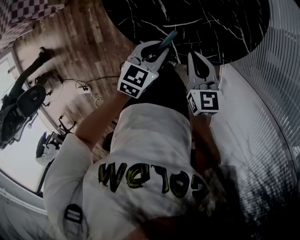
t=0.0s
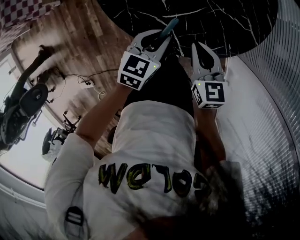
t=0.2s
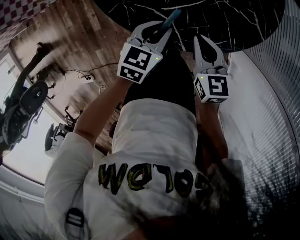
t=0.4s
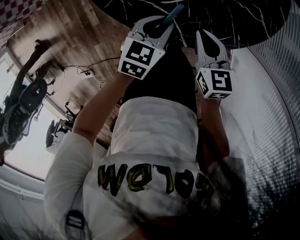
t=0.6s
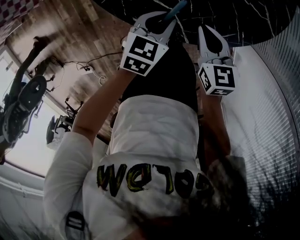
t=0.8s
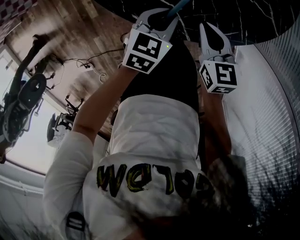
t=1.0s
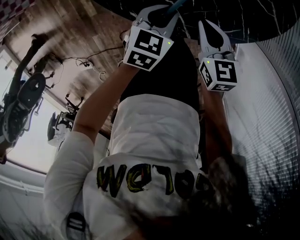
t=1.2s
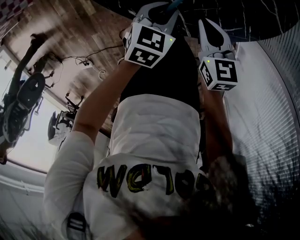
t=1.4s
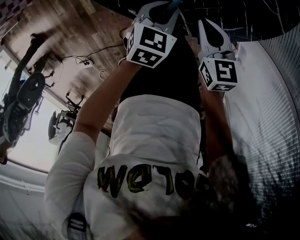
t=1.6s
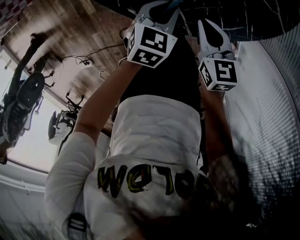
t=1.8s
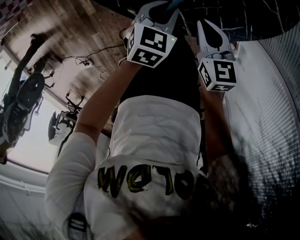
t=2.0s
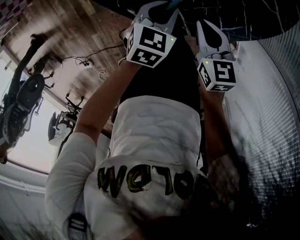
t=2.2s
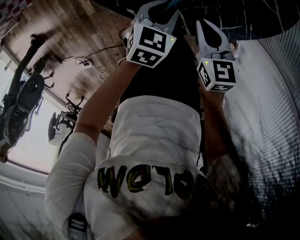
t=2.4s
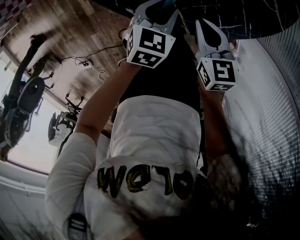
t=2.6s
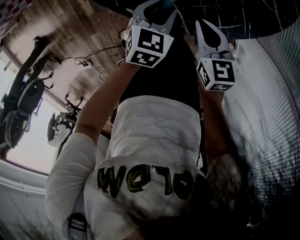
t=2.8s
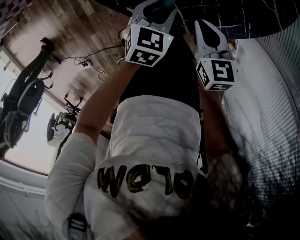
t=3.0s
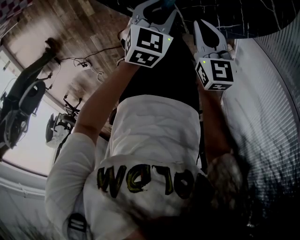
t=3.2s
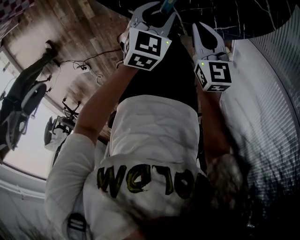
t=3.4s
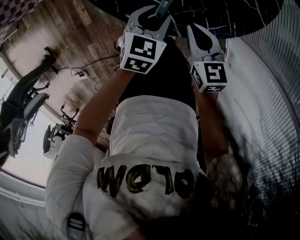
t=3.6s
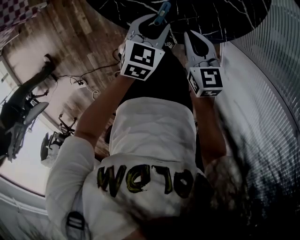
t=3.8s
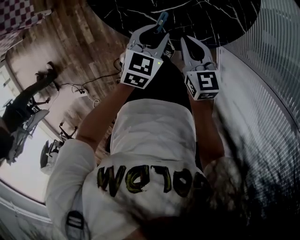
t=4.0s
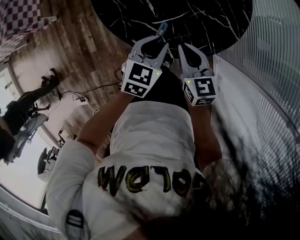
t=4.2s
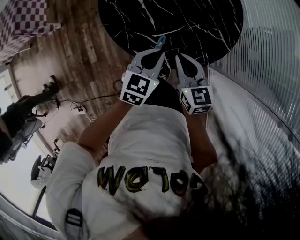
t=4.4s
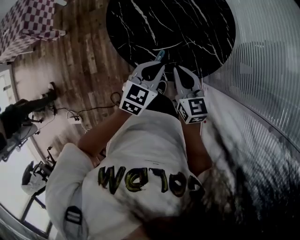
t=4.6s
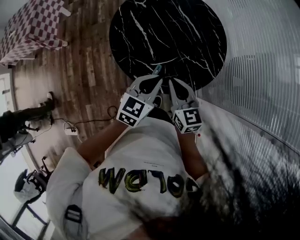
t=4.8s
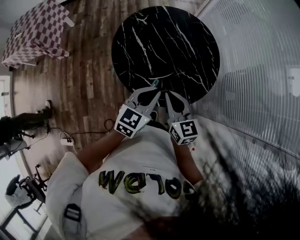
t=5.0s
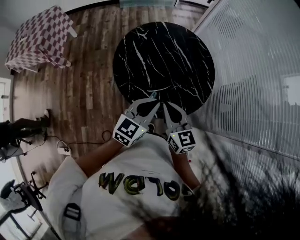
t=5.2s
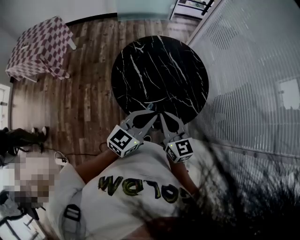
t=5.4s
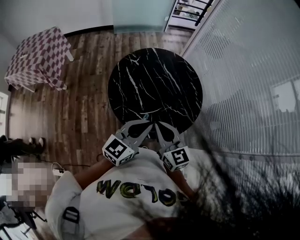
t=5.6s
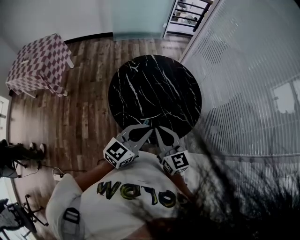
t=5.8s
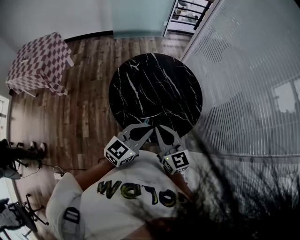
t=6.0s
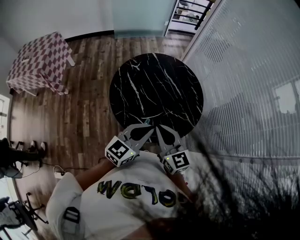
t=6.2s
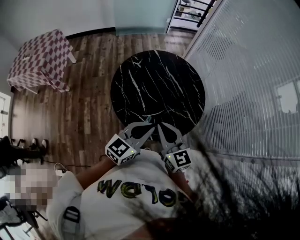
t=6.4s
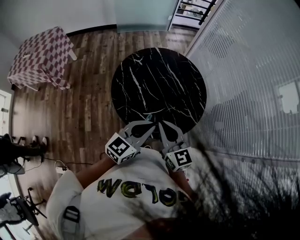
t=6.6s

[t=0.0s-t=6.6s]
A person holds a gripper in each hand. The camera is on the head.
t=0.0s to t=1.6s: Both grippers move downward, roughly 15 cm.
t=1.6s to t=3.2s: Neither gripper changes place.
t=3.2s to t=5.0s: Both grippers move upward, roughly 30 cm. The right gripper turns by about 30 degrees; the left gripper turns by roughly 30 degrees, and closes.
t=5.0s to t=6.6s: Both grippers move upward, roughly 10 cm.

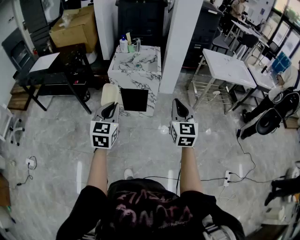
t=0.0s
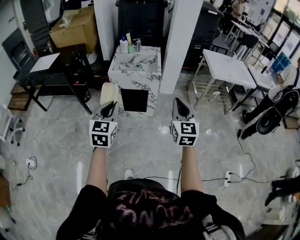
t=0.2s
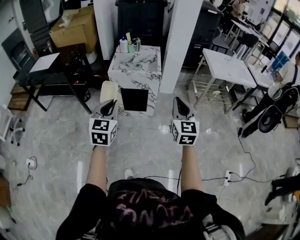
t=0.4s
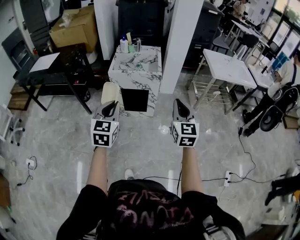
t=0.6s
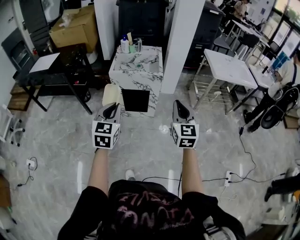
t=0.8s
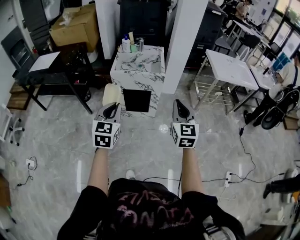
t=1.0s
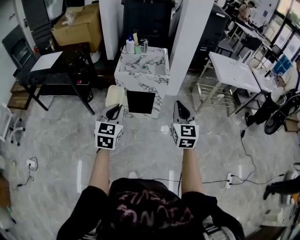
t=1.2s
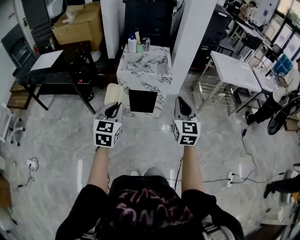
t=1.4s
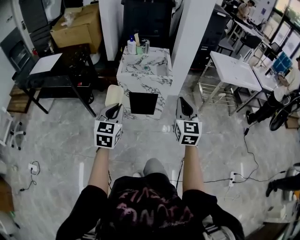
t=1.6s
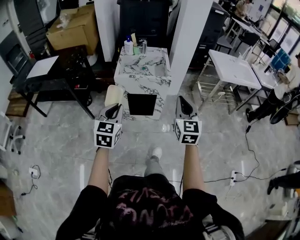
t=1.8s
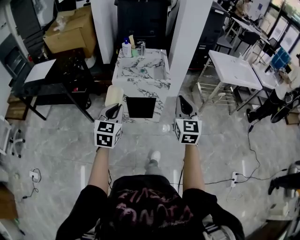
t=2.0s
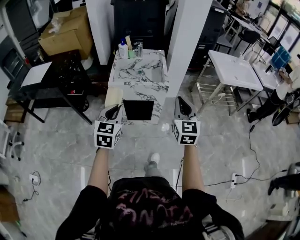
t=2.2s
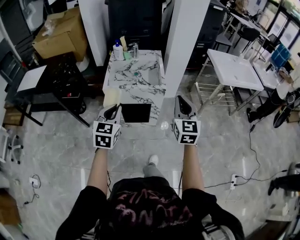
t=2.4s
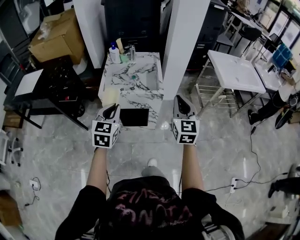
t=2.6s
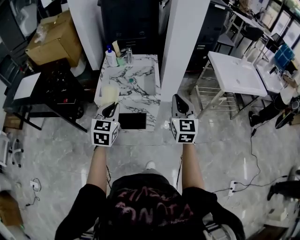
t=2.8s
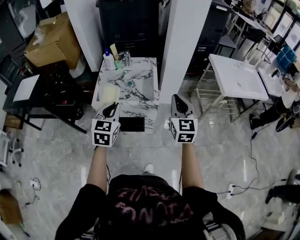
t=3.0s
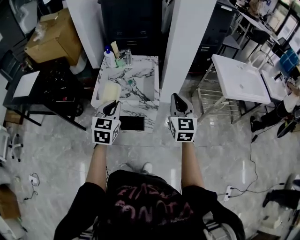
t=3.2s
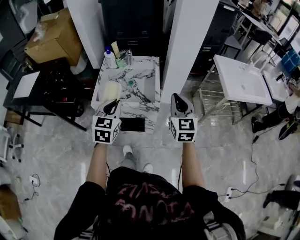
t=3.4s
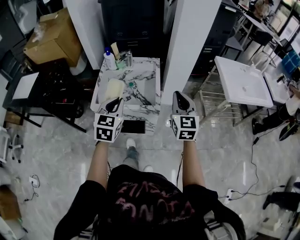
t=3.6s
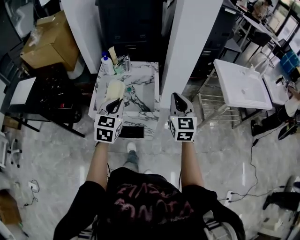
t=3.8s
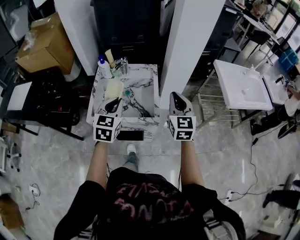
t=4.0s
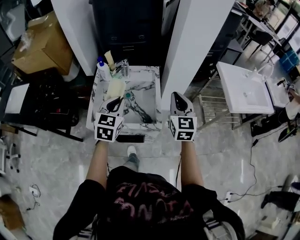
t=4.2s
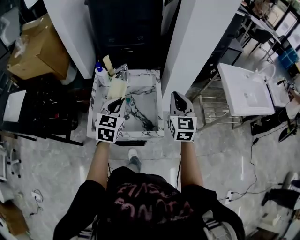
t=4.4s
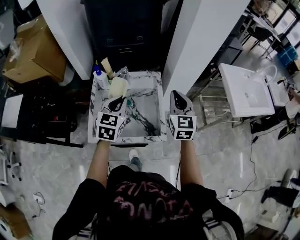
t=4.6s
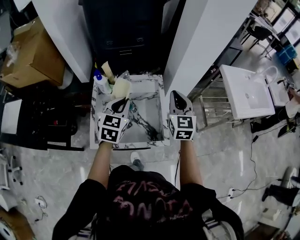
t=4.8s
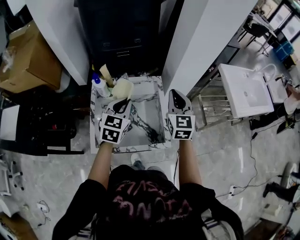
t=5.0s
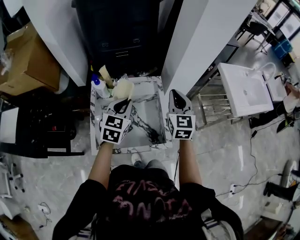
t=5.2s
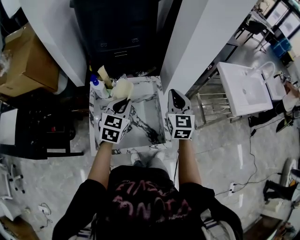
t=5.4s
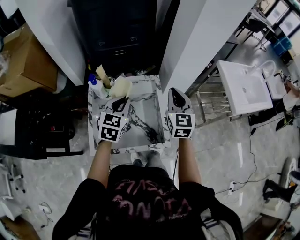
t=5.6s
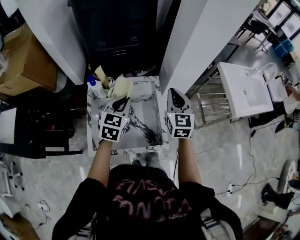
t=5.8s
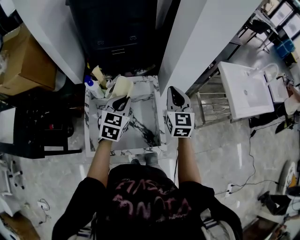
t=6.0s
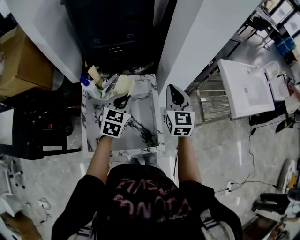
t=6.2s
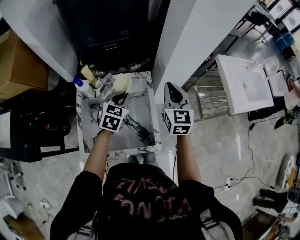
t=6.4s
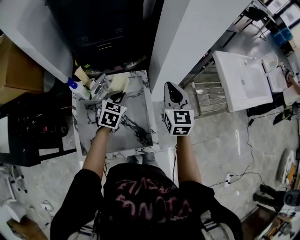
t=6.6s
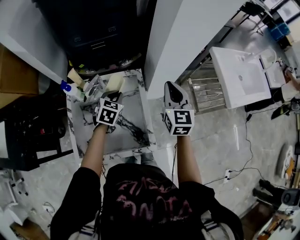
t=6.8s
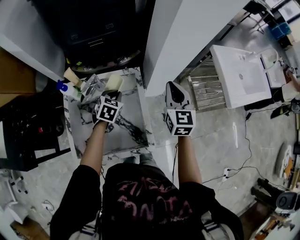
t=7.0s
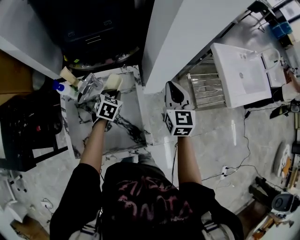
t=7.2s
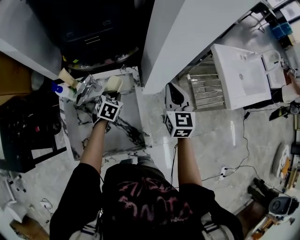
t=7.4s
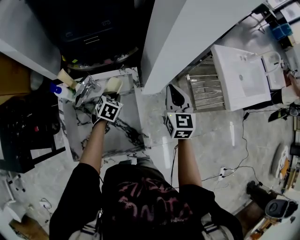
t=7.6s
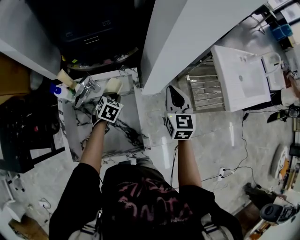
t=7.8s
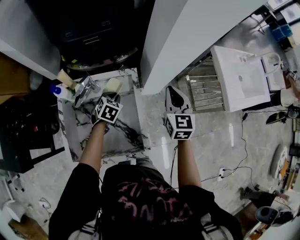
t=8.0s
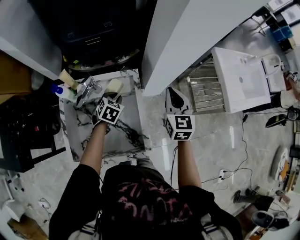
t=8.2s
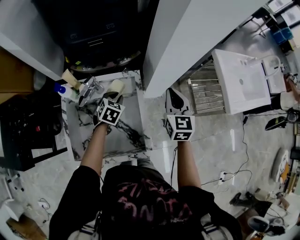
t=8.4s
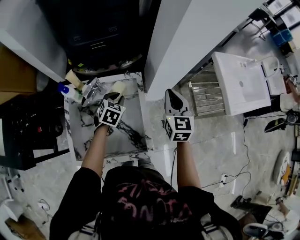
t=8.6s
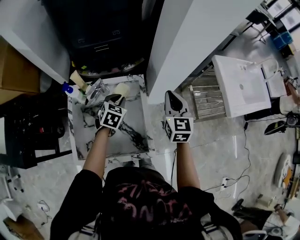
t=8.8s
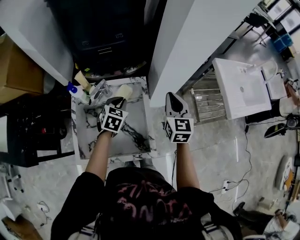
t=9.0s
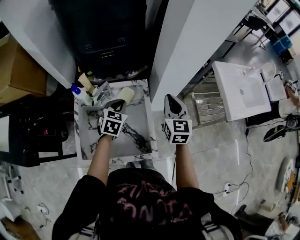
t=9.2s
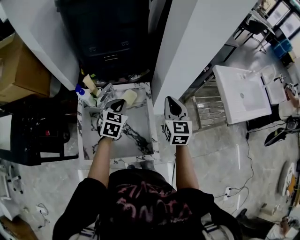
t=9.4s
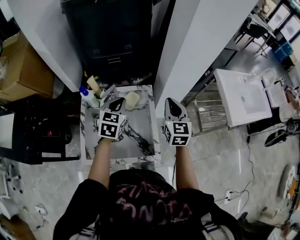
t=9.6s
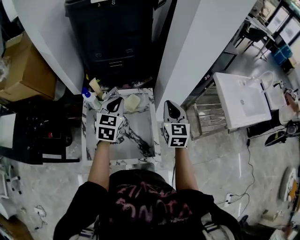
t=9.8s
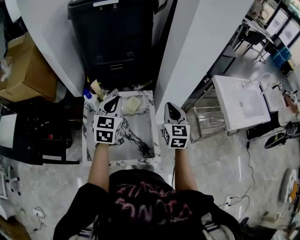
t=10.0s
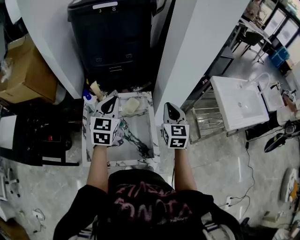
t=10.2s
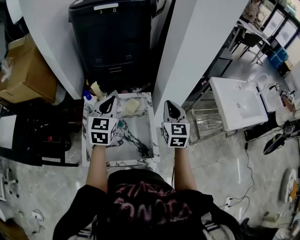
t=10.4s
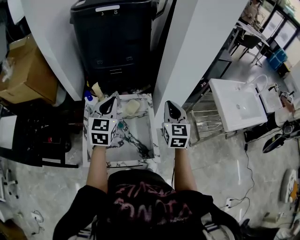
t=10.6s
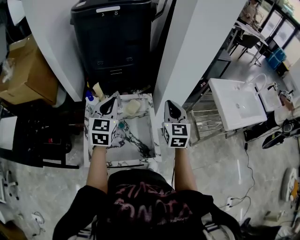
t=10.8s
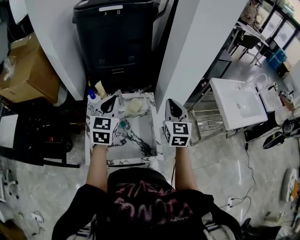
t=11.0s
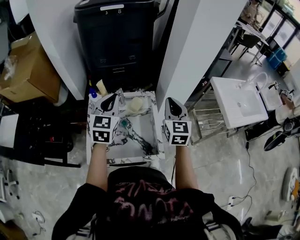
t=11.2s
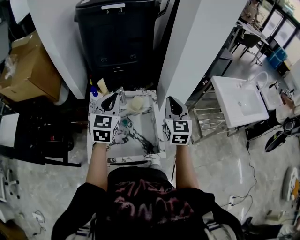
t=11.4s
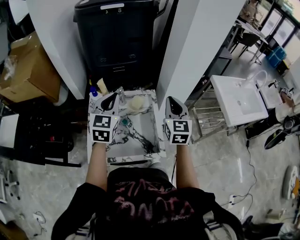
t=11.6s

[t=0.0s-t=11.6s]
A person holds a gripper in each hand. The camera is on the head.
t=0.0s to t=1.4s: The left gripper goes about 10 cm to the left. Meanwhile the right gripper is displaced to the left and forward by roughly 10 cm.
t=1.4s to t=2.8s: Both grippers move forward, approximately 30 cm.
t=2.8s to t=4.4s: Both grippers travel together forward, about 30 cm.
t=4.4s to t=5.8s: Both grippers move forward, about 10 cm.
t=5.8s to t=7.2s: The left gripper goes some 20 cm downward and forward, and turns by roughly 30 degrees; the right gripper is displaced to the right, forward and downward by some 15 cm.
t=7.2s to t=8.8s: The left gripper shifts about 5 cm upward.
t=8.8s to t=10.2s: The right gripper heads upward, covering some 5 cm. Meanwhile the left gripper travels upward by roughly 20 cm, and changes its angle by approximately 30 degrees.
t=10.2s to t=11.6s: The right gripper shifts by approximately 5 cm, while the left gripper ends up approximately 5 cm from where it was.

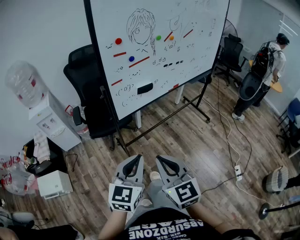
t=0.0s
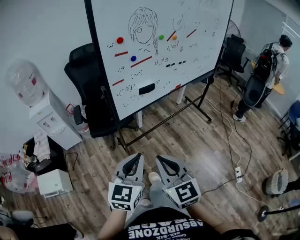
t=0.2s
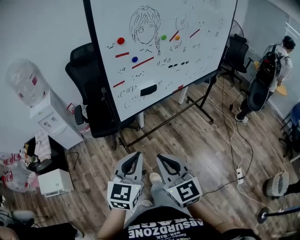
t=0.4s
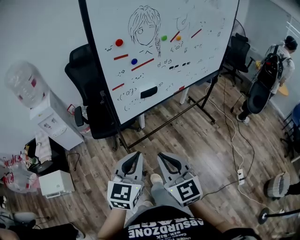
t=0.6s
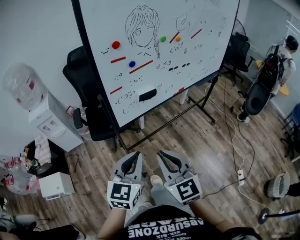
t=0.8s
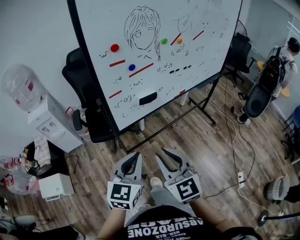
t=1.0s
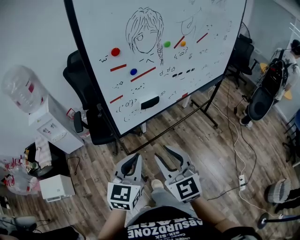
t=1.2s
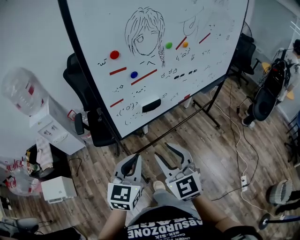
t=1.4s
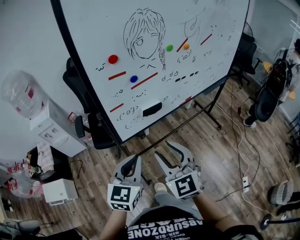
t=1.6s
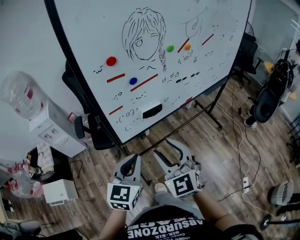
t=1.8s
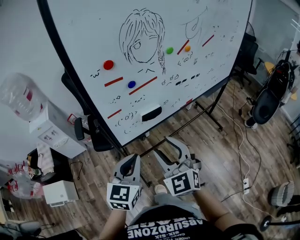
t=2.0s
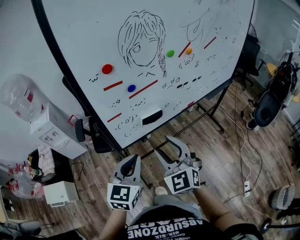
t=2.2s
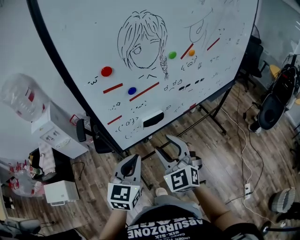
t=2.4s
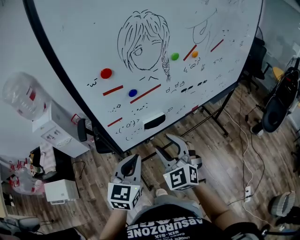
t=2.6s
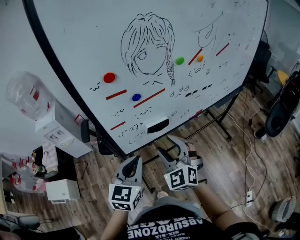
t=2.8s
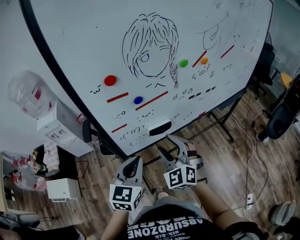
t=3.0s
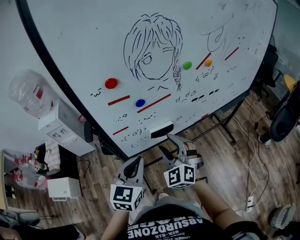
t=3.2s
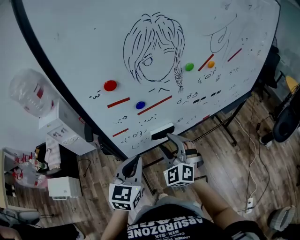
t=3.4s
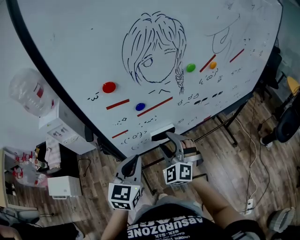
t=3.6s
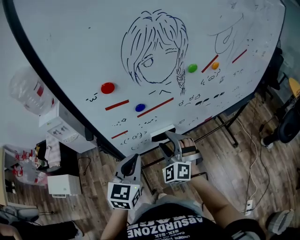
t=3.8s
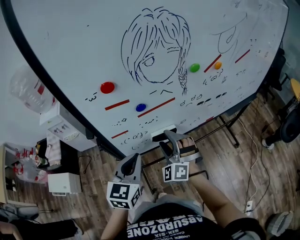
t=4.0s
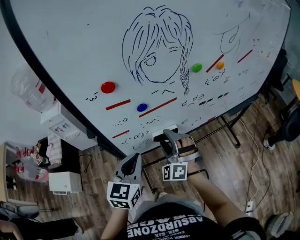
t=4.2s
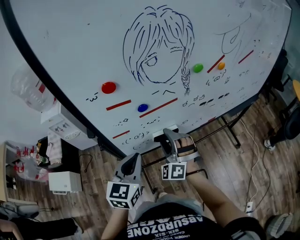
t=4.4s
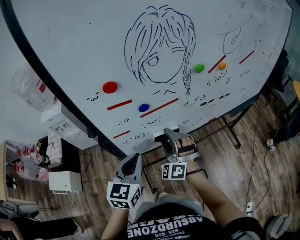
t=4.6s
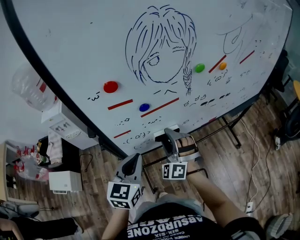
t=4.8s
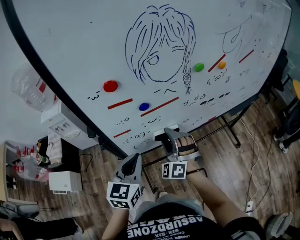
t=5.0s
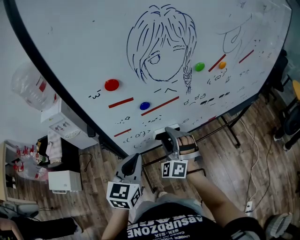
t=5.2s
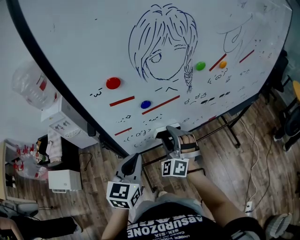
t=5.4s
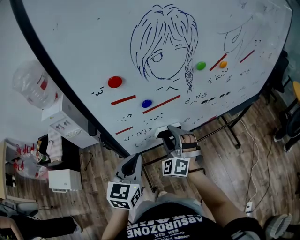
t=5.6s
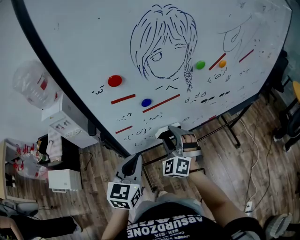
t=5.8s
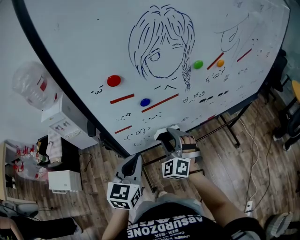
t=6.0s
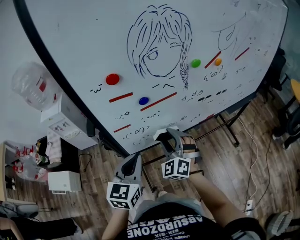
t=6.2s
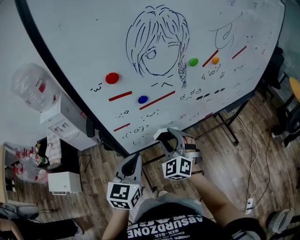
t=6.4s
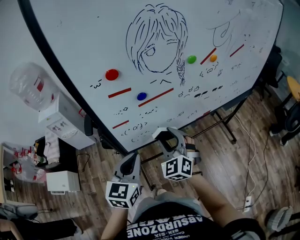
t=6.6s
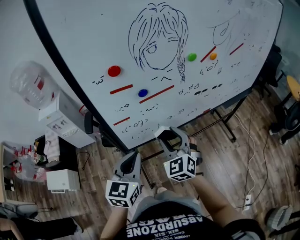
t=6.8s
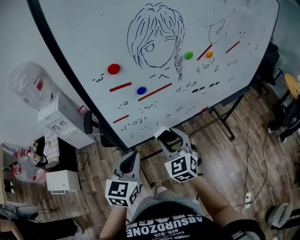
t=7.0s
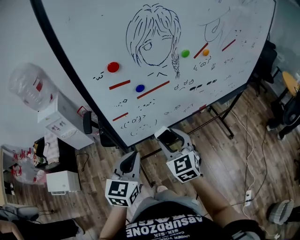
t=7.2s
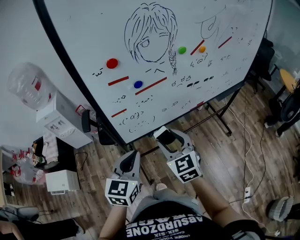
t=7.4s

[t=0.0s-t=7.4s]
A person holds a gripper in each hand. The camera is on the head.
t=0.0s to t=1.4s: The grippers both shift forward by about 15 cm. The right gripper opens up.
t=1.4s to t=3.0s: The grippers both shift forward by roughly 15 cm. The right gripper swivels about 30 degrees.
t=3.0s to t=4.4s: The left gripper moves approximately 5 cm. Meanwhile the right gripper is displaced forward and downward by about 10 cm, and turns by approximately 30 degrees.
t=4.4s to t=6.0s: The grippers make only small movements.
t=6.0s to t=7.4s: The left gripper travels backward by approximately 5 cm. Meanwhile the right gripper shifts approximately 10 cm backward and upward, and changes its angle by approximately 40 degrees.
